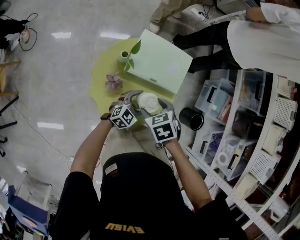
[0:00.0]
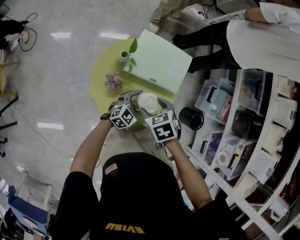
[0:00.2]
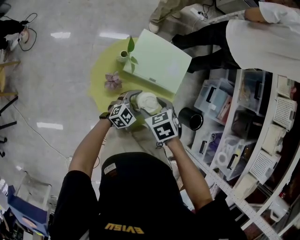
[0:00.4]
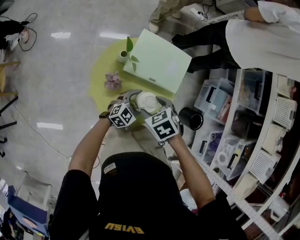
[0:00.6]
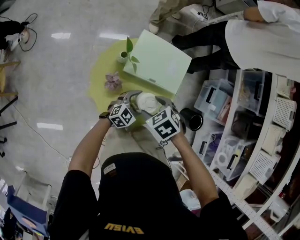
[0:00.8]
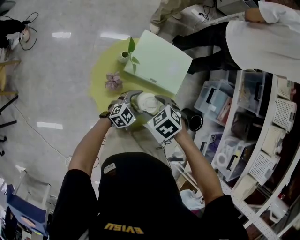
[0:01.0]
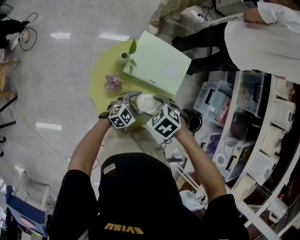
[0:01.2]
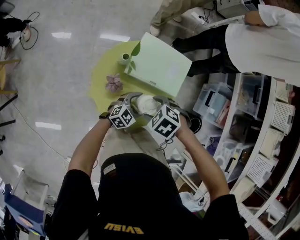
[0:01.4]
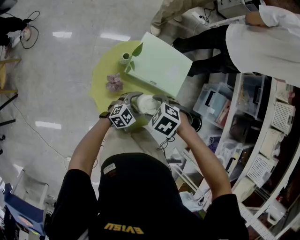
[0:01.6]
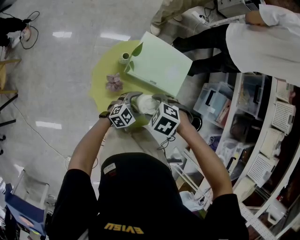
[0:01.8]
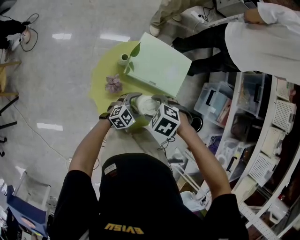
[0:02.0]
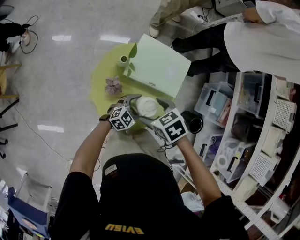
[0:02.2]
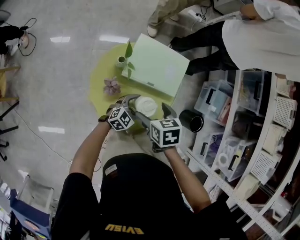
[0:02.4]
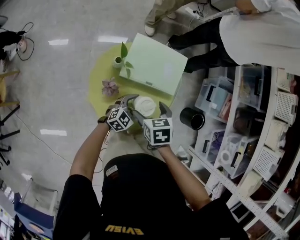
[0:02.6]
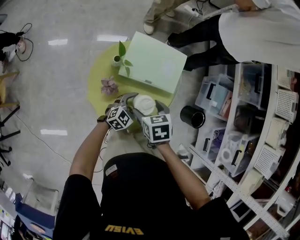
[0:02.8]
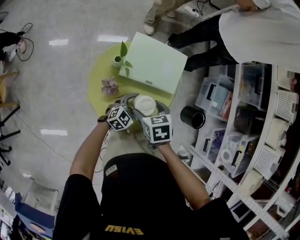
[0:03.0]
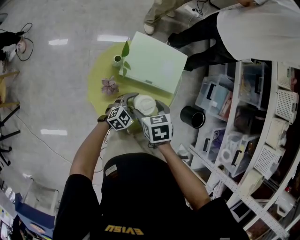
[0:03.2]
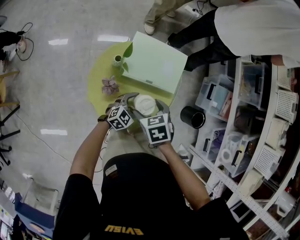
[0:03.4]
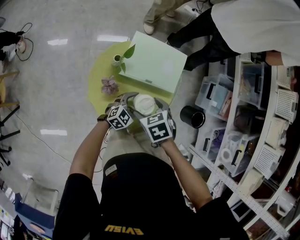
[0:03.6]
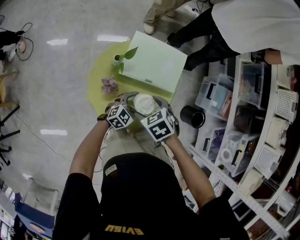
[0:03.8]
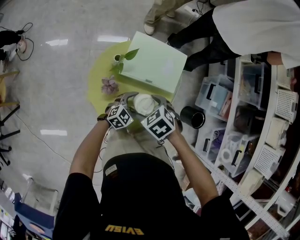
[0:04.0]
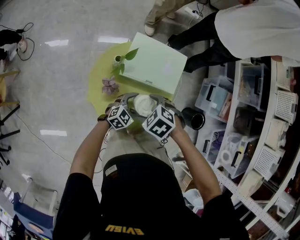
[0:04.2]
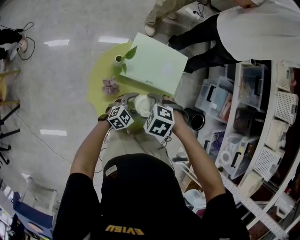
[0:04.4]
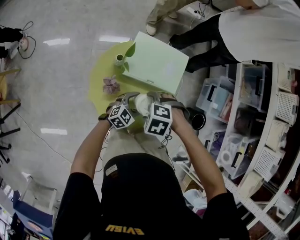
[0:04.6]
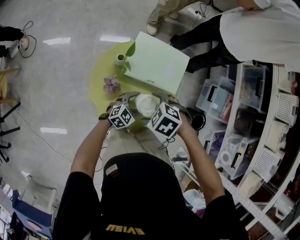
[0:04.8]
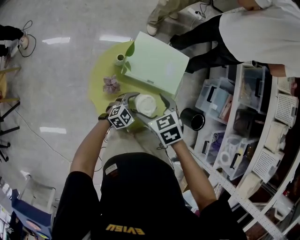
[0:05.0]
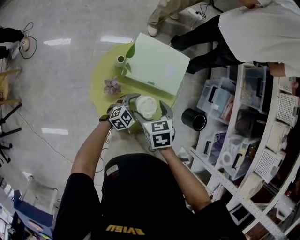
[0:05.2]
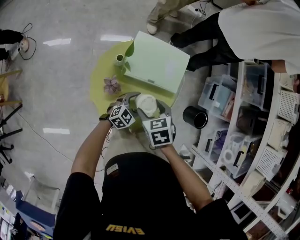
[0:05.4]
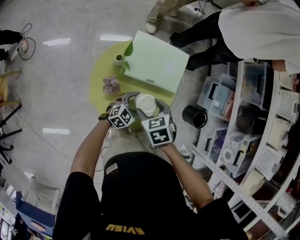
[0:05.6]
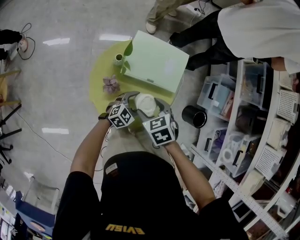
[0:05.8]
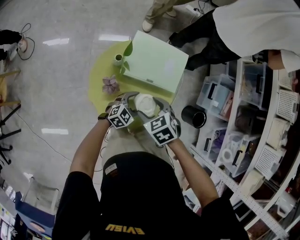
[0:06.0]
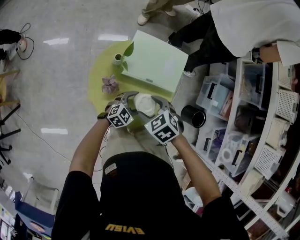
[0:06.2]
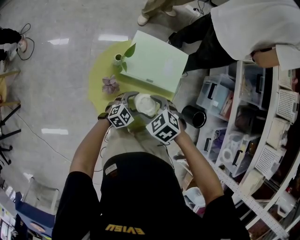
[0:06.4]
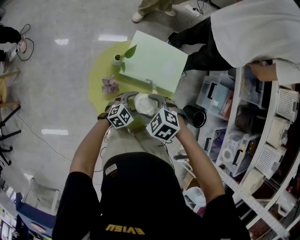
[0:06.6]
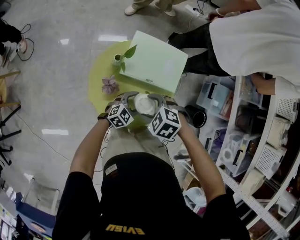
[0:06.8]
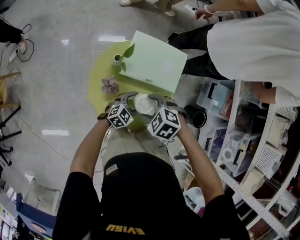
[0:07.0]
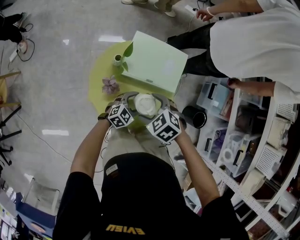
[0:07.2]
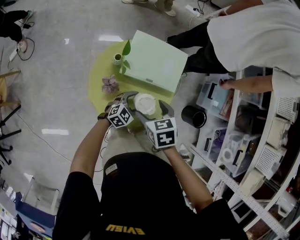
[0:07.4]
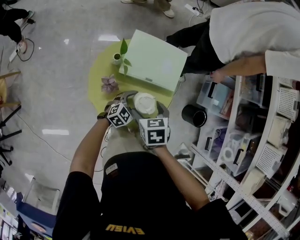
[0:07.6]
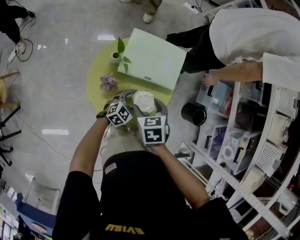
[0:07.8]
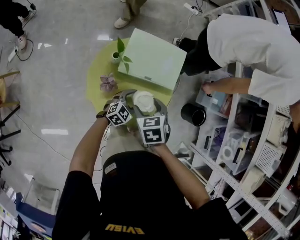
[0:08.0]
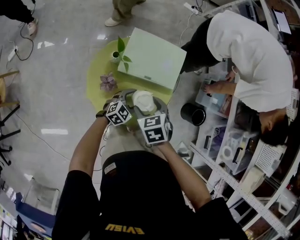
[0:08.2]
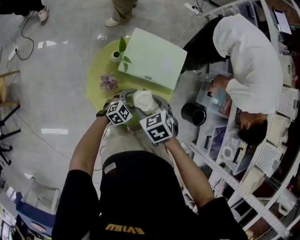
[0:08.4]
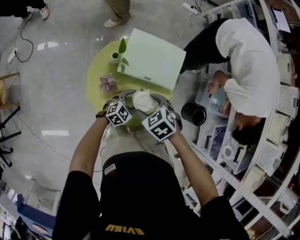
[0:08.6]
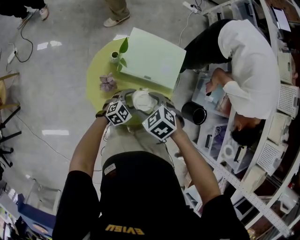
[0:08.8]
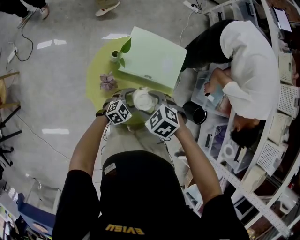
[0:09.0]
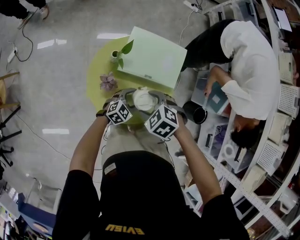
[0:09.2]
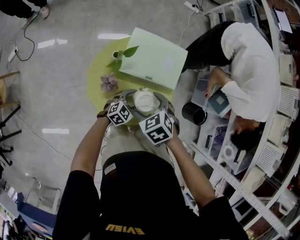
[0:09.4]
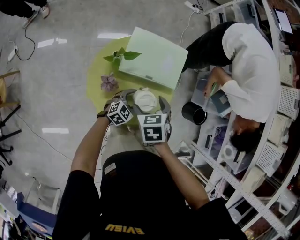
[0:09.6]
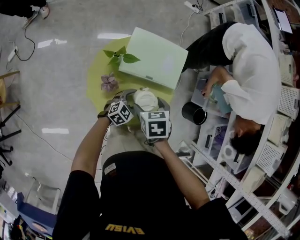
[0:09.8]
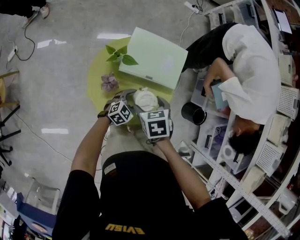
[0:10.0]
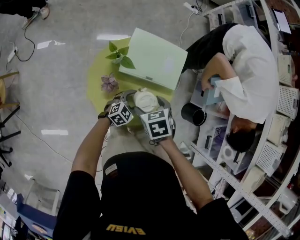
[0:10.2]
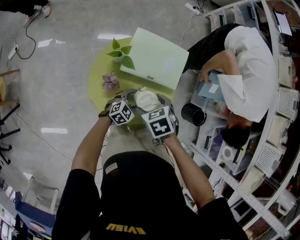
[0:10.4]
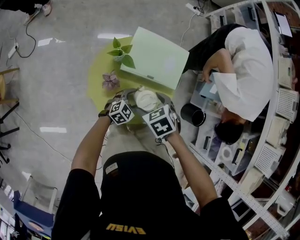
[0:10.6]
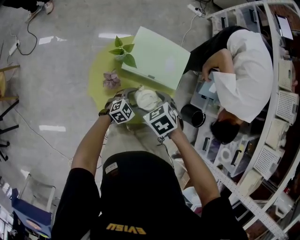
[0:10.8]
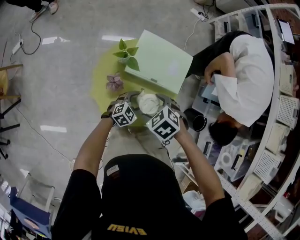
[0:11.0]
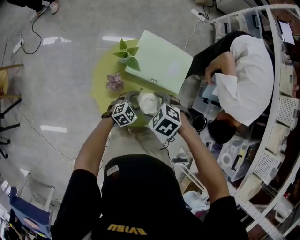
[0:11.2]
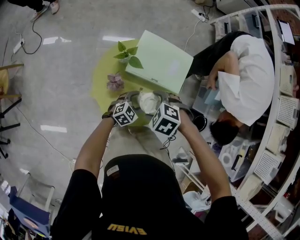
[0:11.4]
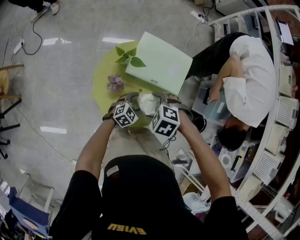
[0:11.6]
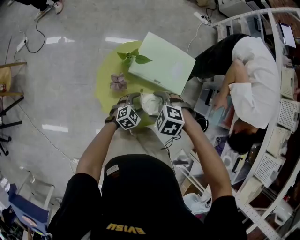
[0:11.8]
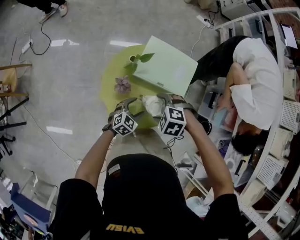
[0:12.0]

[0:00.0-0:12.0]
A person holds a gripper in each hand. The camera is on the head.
0:00.0 to 0:01.6: The right gripper swivels approximately 40 degrees.
0:01.6 to 0:03.0: The right gripper twists roughly 50 degrees clockwise, seen from behind.
0:03.0 to 0:04.4: The right gripper twists roughly 60 degrees counterclockwise, seen from behind.
0:04.4 to 0:06.0: The right gripper swivels roughly 40 degrees.
0:06.0 to 0:07.6: The right gripper swivels some 30 degrees.
0:07.6 to 0:09.0: The right gripper rotates around the line of its fingers by about 50 degrees, counterclockwise from behind.
0:09.0 to 0:10.4: The right gripper changes its angle by some 30 degrees.
0:10.4 to 0:12.0: The right gripper rotates around the line of its fingers by some 50 degrees, counterclockwise from behind. Meanwhile the left gripper moves about 5 cm.

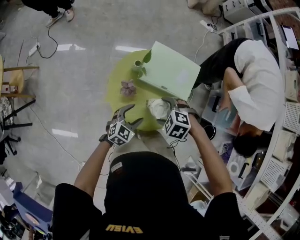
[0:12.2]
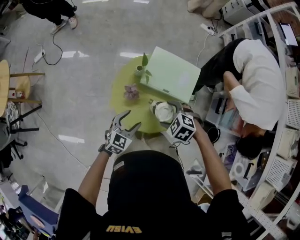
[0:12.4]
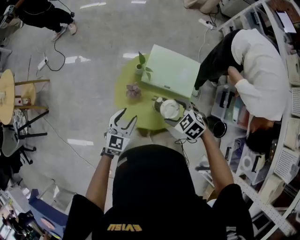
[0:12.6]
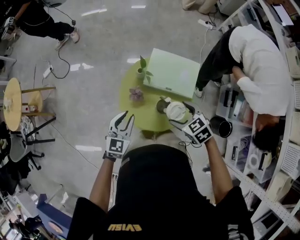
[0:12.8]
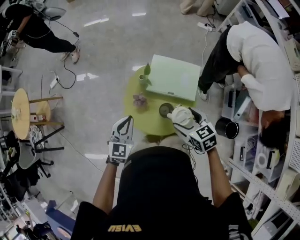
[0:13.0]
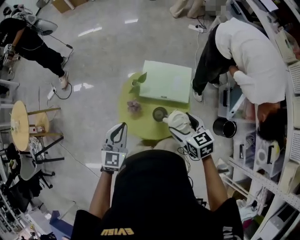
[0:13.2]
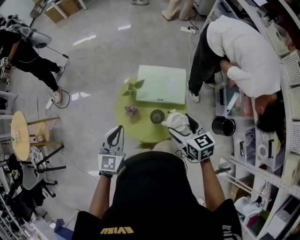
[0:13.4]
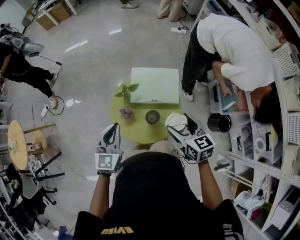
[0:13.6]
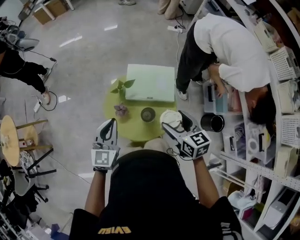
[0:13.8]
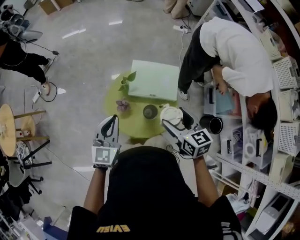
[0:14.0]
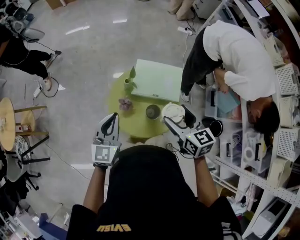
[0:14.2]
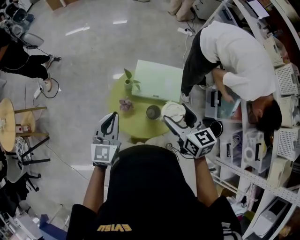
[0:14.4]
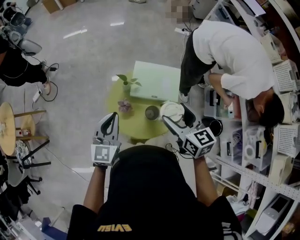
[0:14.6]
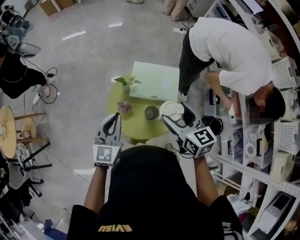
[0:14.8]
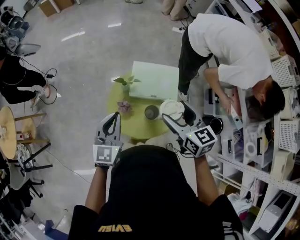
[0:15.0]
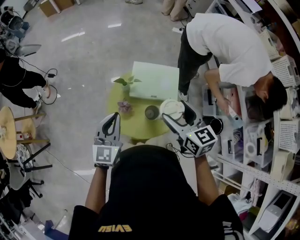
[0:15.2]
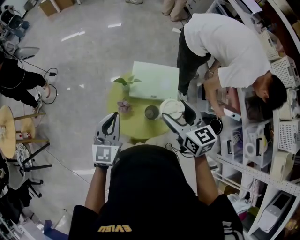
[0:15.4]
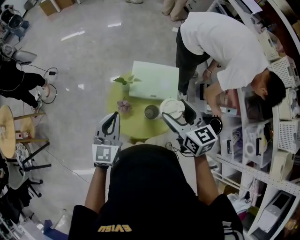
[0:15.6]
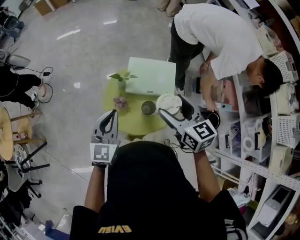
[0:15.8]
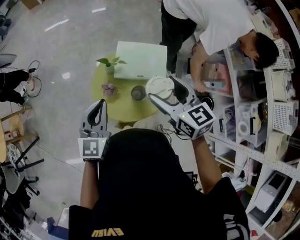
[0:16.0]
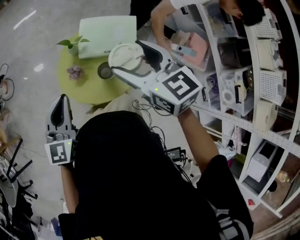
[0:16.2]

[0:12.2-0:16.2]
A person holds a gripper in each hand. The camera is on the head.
0:12.2 to 0:13.6: The right gripper goes some 20 cm upward and to the right, and points its fingers approximately 40 degrees further upward. The left gripper travels upward by roughly 25 cm, swivels about 30 degrees, and closes up.
0:13.6 to 0:14.8: The right gripper moves upward, roughly 5 cm.
0:14.8 to 0:16.2: The right gripper shifts by about 5 cm.

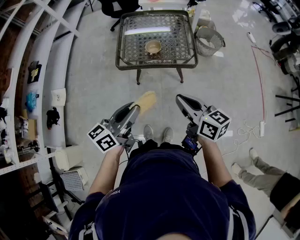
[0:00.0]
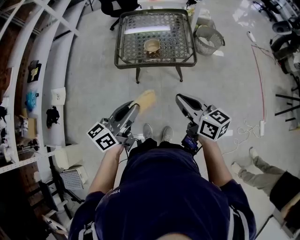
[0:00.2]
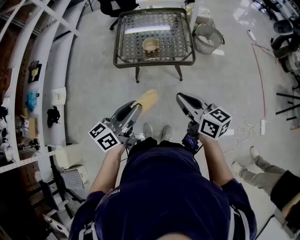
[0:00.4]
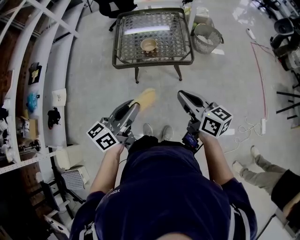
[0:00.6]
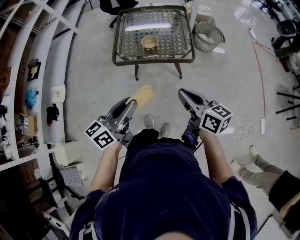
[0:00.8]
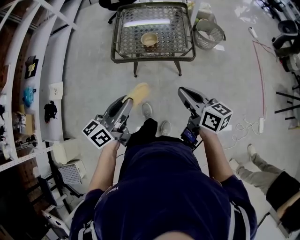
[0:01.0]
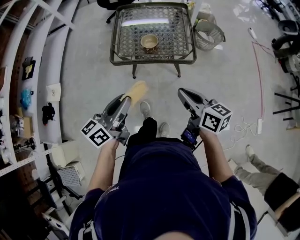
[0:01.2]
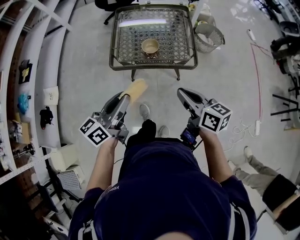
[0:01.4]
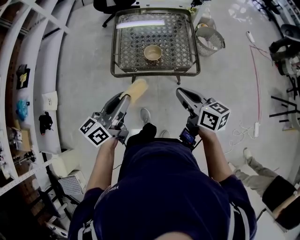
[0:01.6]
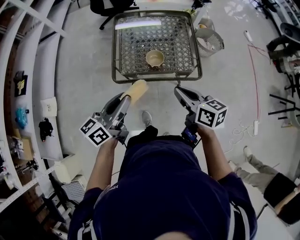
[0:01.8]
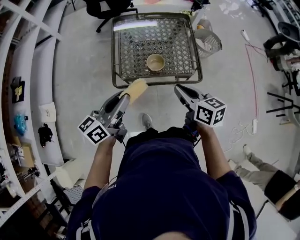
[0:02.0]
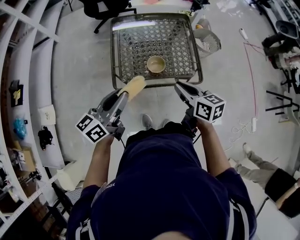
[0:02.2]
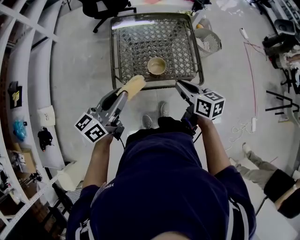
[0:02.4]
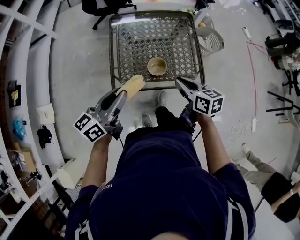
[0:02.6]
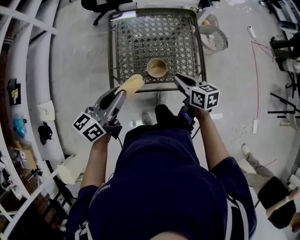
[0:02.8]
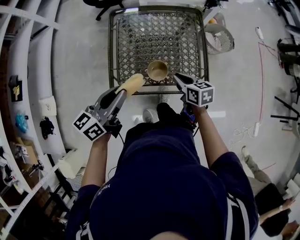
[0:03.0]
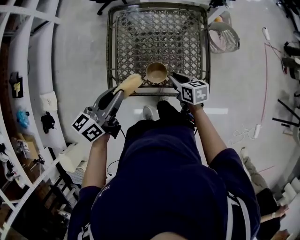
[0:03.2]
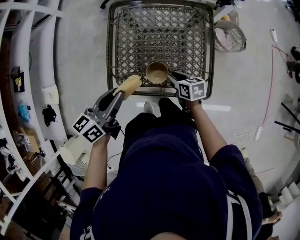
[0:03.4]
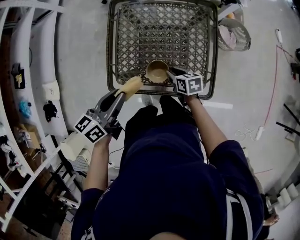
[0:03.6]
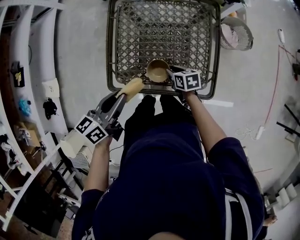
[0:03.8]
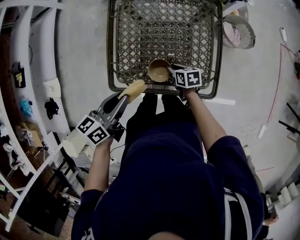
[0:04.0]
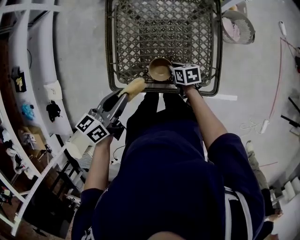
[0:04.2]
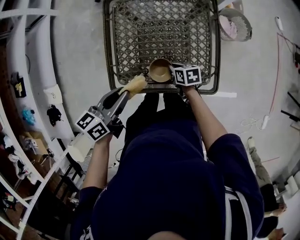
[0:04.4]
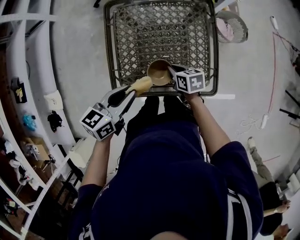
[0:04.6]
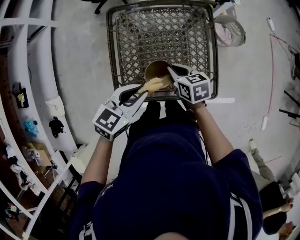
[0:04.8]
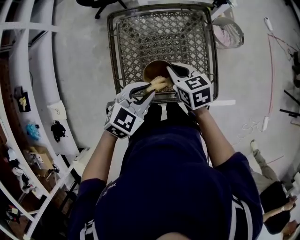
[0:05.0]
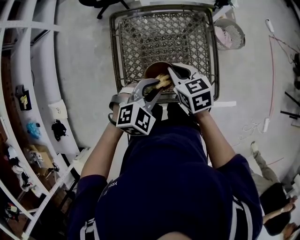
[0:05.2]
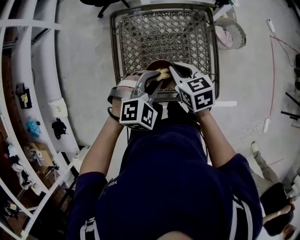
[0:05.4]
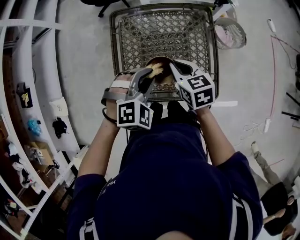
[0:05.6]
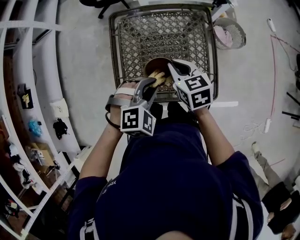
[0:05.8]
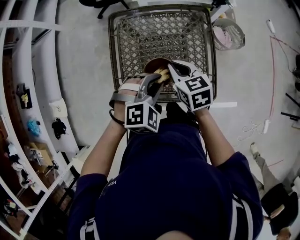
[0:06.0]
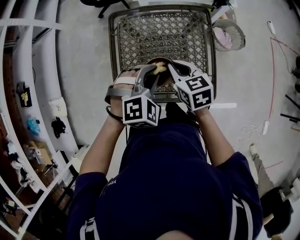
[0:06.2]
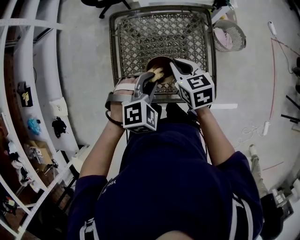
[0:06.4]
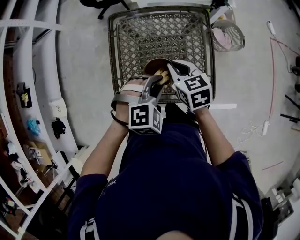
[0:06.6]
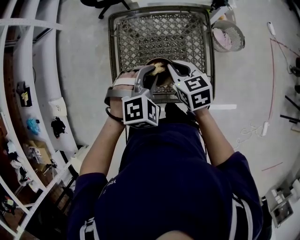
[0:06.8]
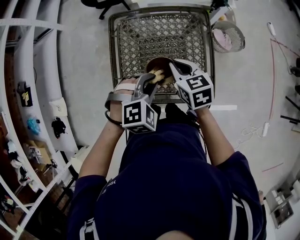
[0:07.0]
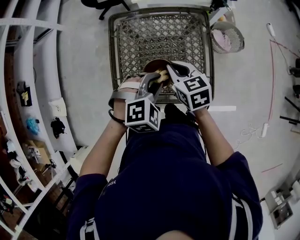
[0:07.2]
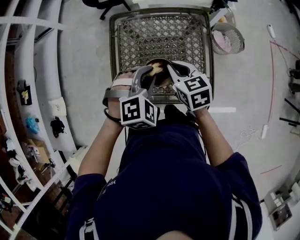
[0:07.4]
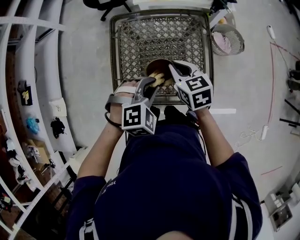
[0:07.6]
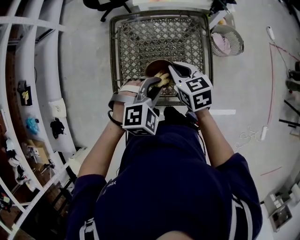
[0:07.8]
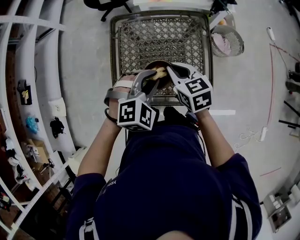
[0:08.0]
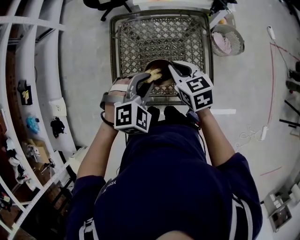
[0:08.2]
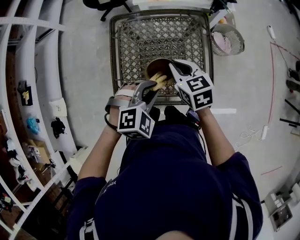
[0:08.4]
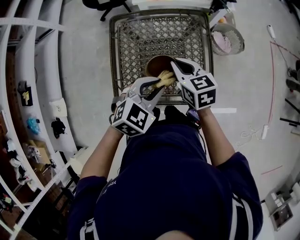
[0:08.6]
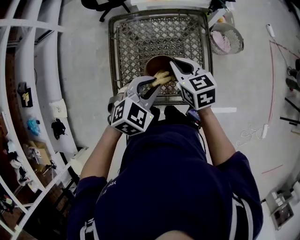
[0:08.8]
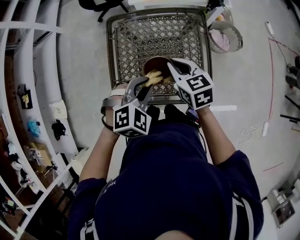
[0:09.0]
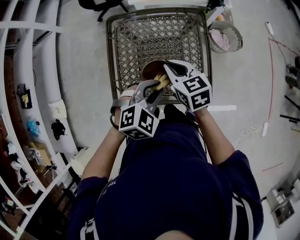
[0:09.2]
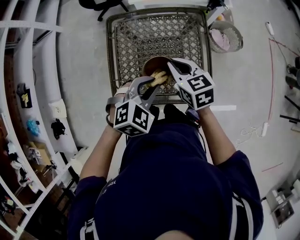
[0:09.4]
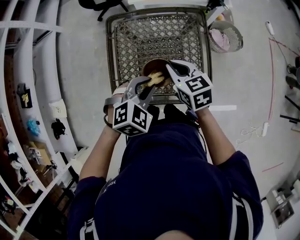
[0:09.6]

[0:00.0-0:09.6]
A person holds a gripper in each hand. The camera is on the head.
0:00.0 to 0:01.6: Both grippers move forward, approximately 15 cm.
0:01.6 to 0:03.2: The left gripper is displaced forward by some 20 cm. Meanwhile the right gripper moves forward and downward, about 30 cm, and changes its angle by roughly 20 degrees.
0:03.2 to 0:04.8: The right gripper heads forward, covering some 5 cm, and goes downward and returns, roughly 10 cm each way. The left gripper travels to the right by some 5 cm, and changes its angle by about 40 degrees.
0:04.8 to 0:06.4: The left gripper heads to the right, covering some 5 cm, and rotates around the line of its fingers by some 50 degrees, clockwise from behind, while the right gripper travels upward by about 5 cm.
0:06.4 to 0:08.0: The grippers make only small movements.
